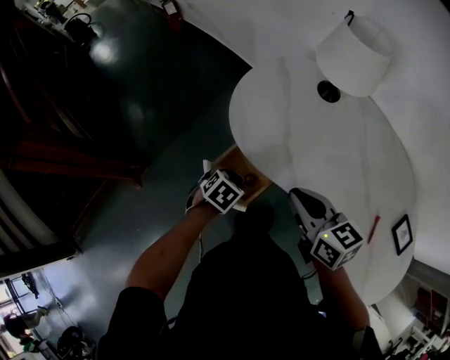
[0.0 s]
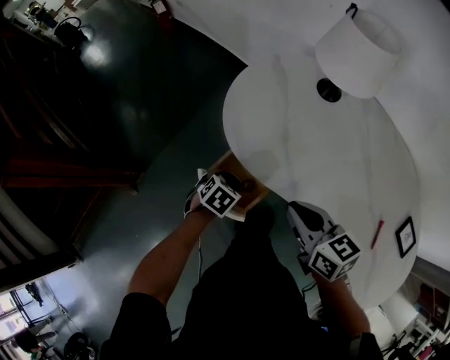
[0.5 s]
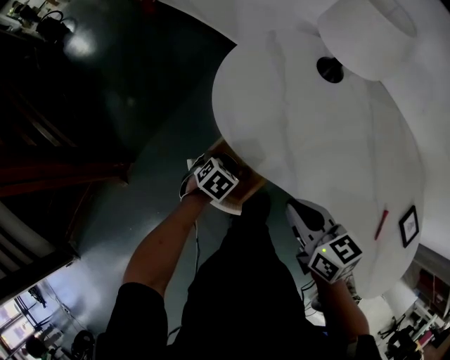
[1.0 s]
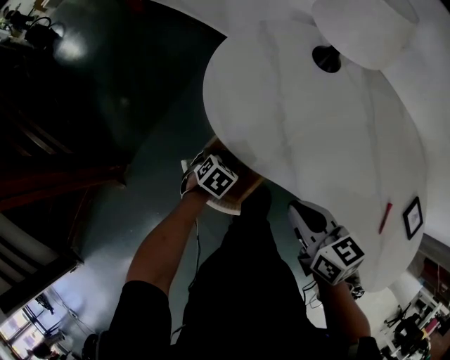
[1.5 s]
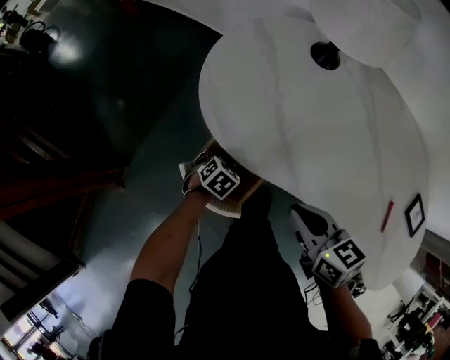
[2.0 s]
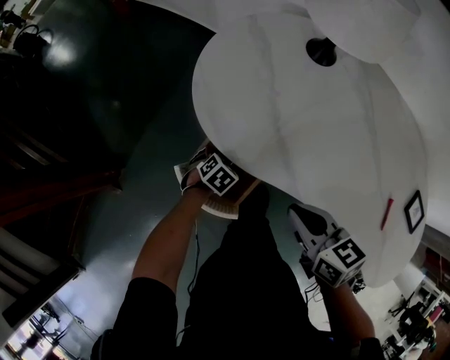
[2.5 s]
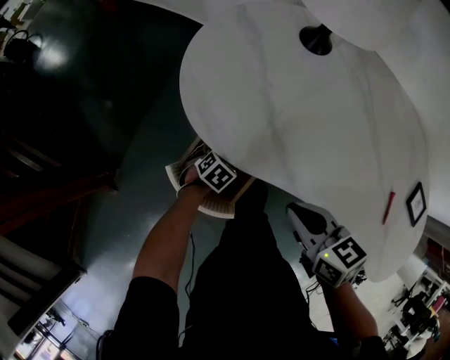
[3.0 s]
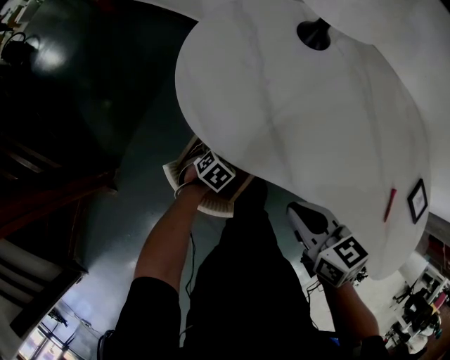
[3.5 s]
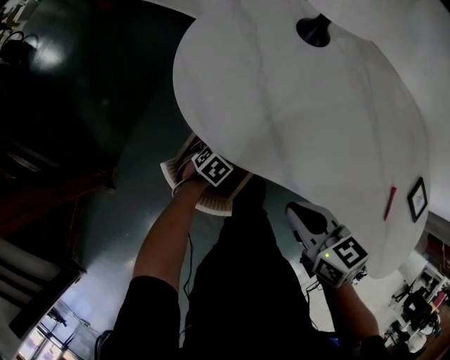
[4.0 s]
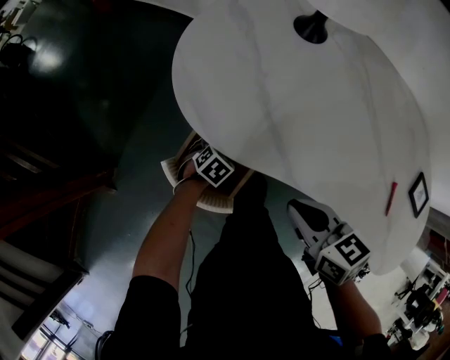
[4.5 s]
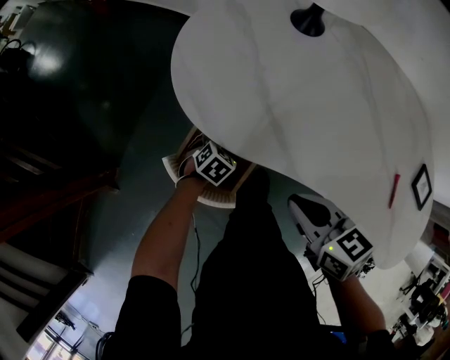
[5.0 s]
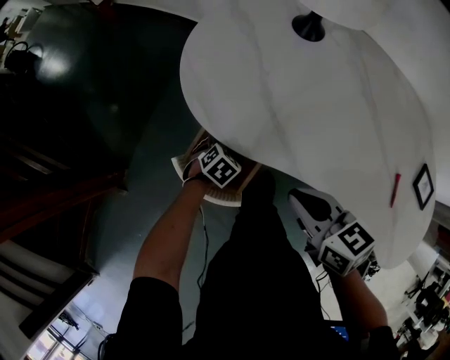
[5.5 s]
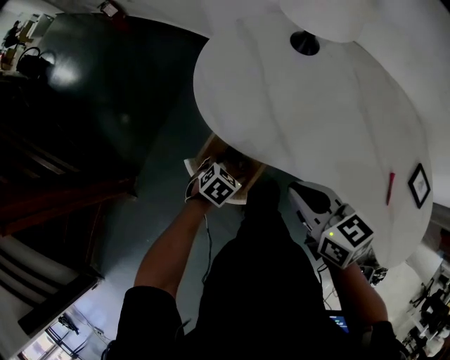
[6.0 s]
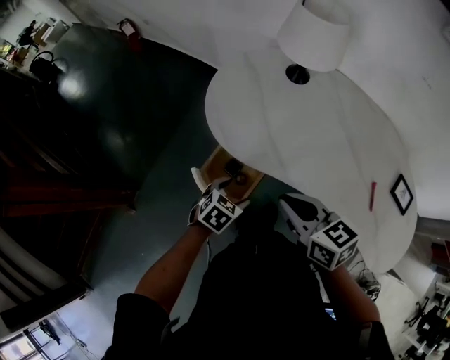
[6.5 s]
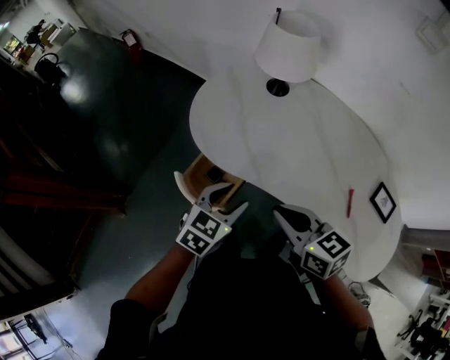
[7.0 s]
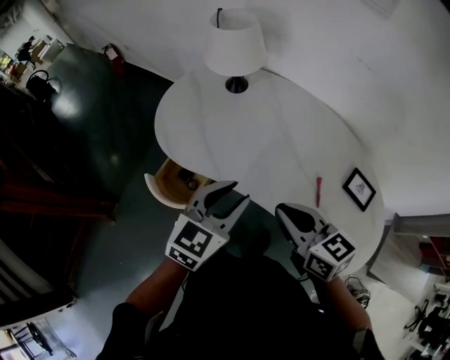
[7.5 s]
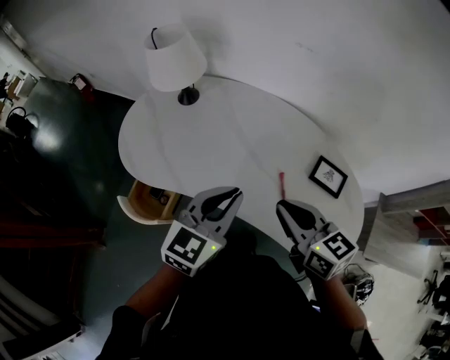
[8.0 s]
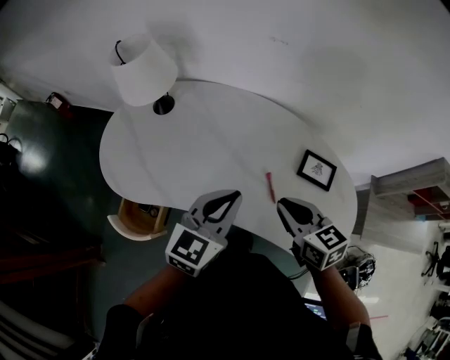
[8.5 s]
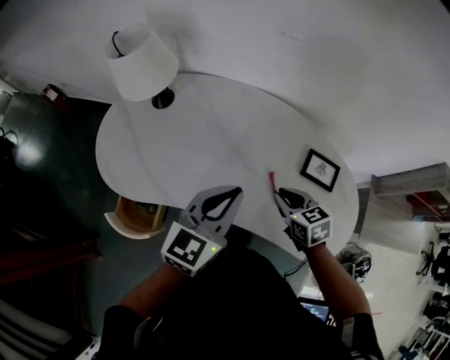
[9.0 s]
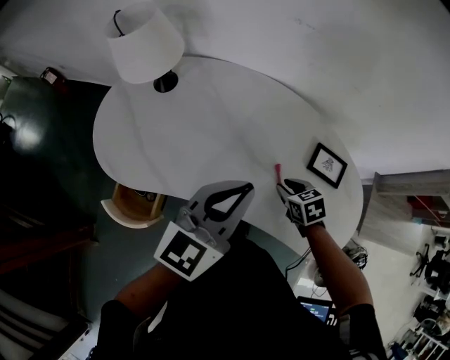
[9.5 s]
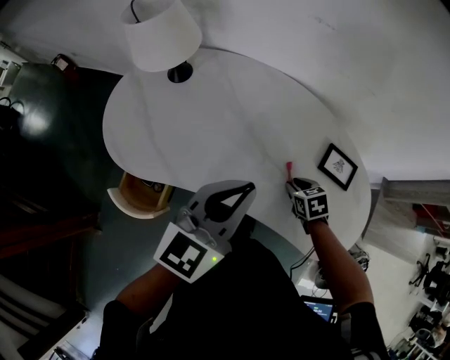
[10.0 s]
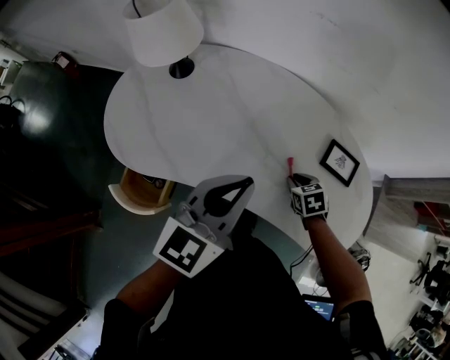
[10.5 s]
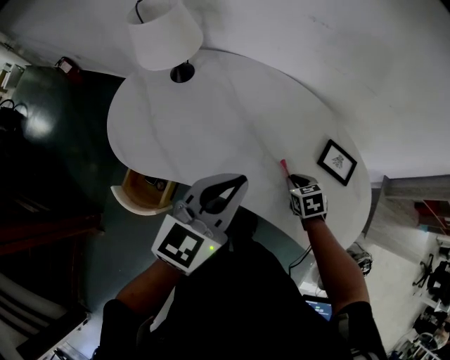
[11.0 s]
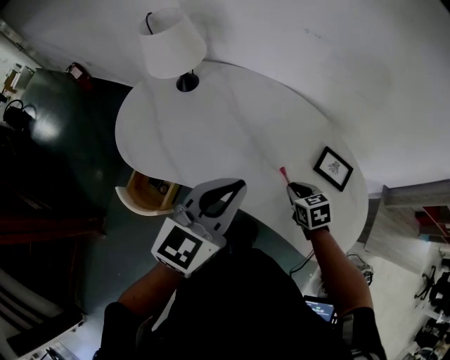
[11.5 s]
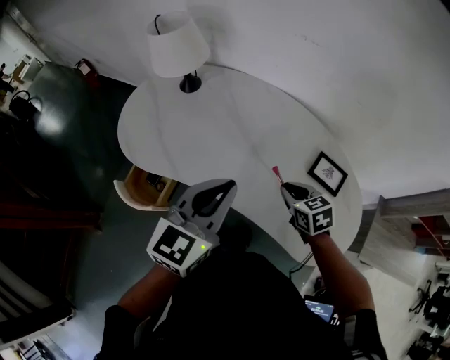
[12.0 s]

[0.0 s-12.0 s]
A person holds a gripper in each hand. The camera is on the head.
0.0 to 2.0 s: The right gripper goes about 10 cm downward, while the left gripper moves downward and forward, some 15 cm.
2.0 to 4.0 s: The left gripper travels downward by approximately 5 cm.
4.0 to 6.0 s: The left gripper shifts approximately 15 cm upward, while the right gripper moves upward, roughly 10 cm.
6.0 to 8.0 s: The left gripper heads upward and to the right, covering approximately 50 cm, angles its fingers upward, by roughly 50 degrees, and closes its fingers. The right gripper heads to the right, covering some 35 cm, and swivels some 20 degrees.
8.0 to 10.0 s: The right gripper shifts some 25 cm downward, and tips its fingers downward by some 50 degrees.
10.0 to 12.0 s: The left gripper moves approximately 5 cm, while the right gripper heads upward, covering approximately 10 cm.

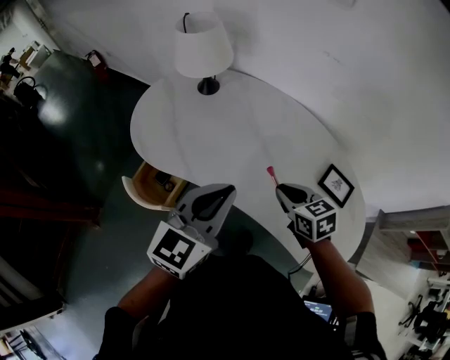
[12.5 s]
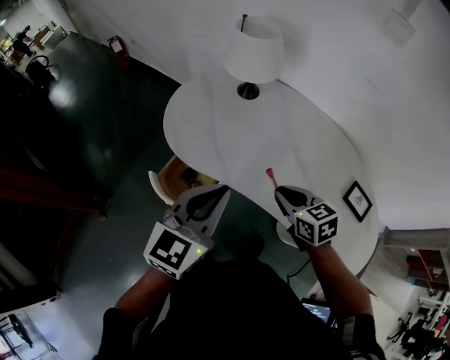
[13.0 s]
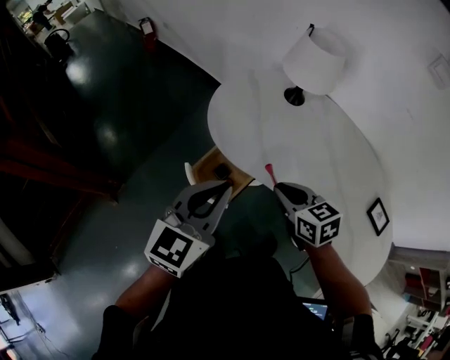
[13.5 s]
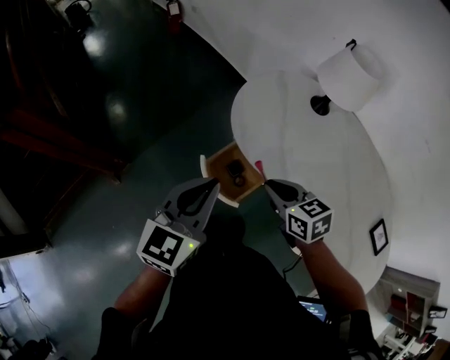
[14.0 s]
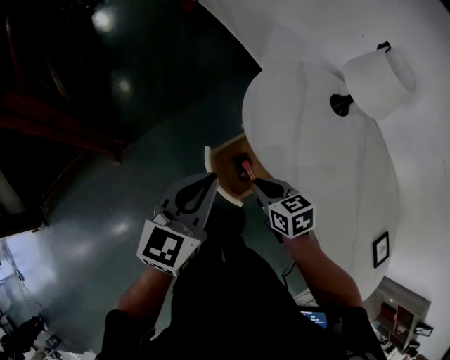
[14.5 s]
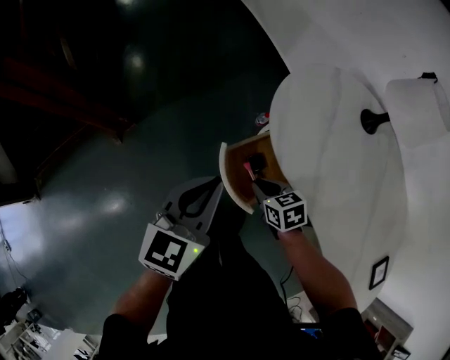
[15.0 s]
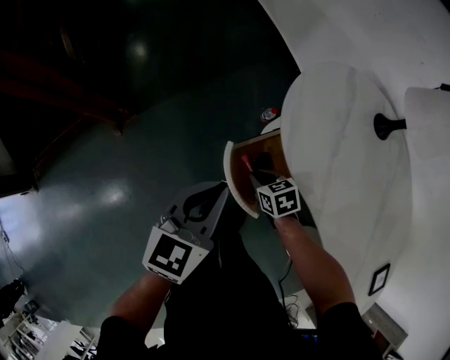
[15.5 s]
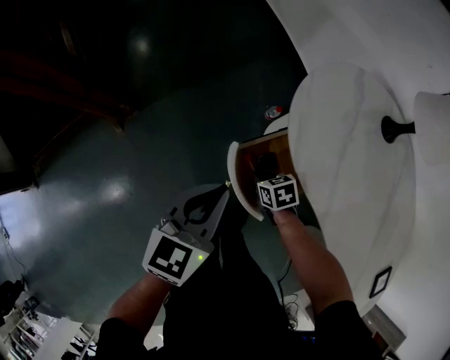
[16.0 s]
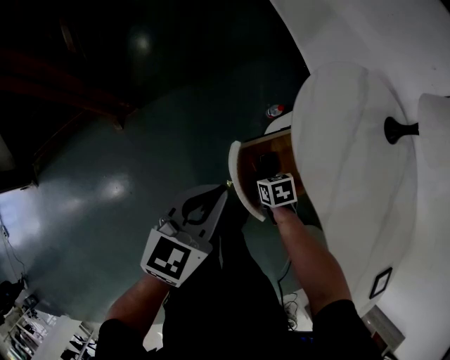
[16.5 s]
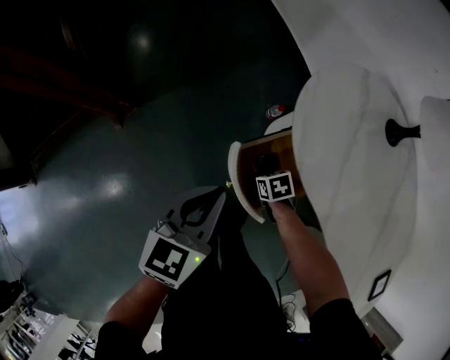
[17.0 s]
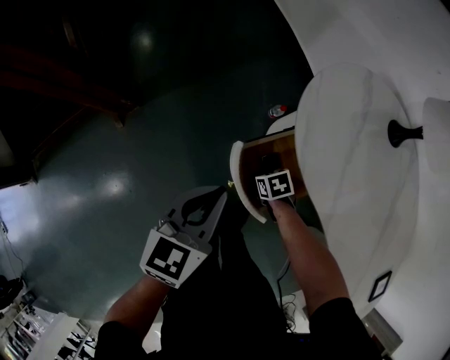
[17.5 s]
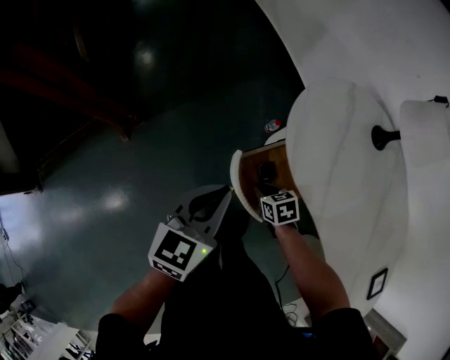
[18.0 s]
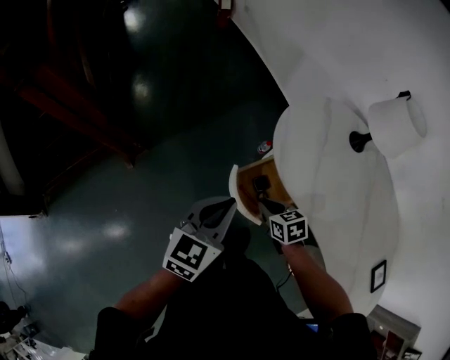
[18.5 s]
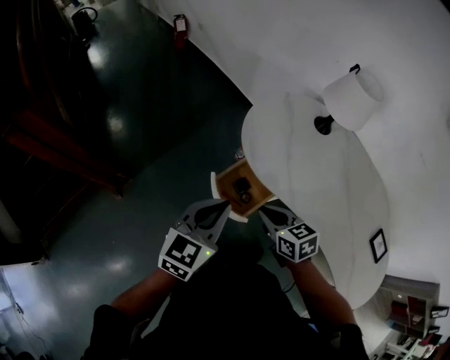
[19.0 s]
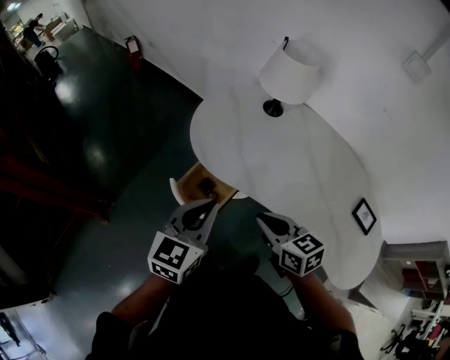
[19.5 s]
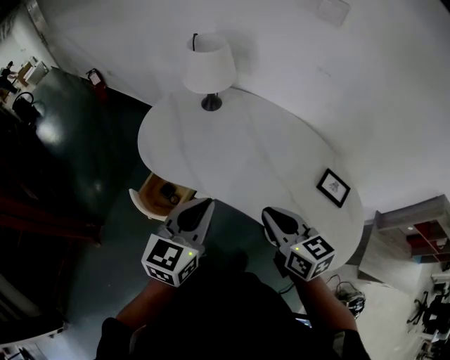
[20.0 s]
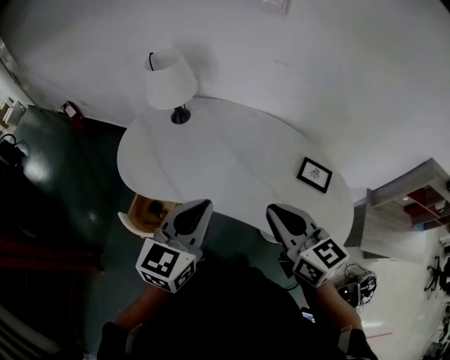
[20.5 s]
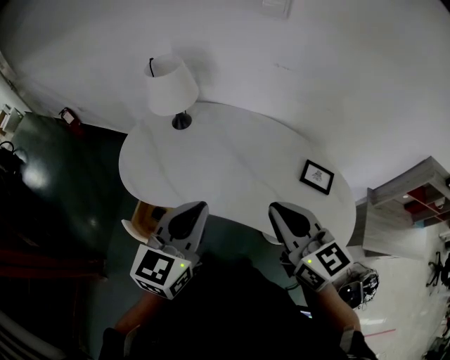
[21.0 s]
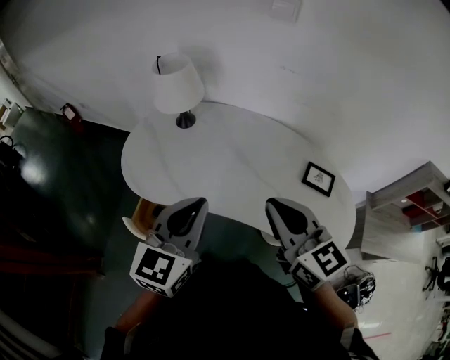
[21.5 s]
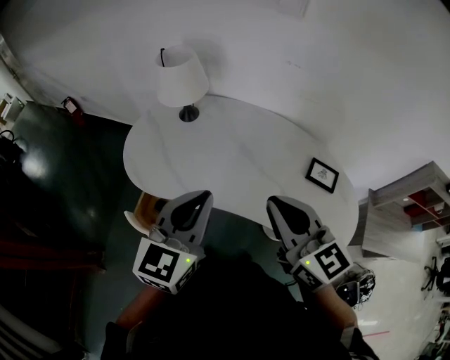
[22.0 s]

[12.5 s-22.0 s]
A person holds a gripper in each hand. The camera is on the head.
12.5 to 14.5 s: Both grippers are carried about 40 cm. The right gripper swivels approximately 30 degrees; the left gripper turns by some 40 degrees.
14.5 to 16.5 s: The left gripper goes some 15 cm downward, while the right gripper travels downward by some 25 cm, and swivels roughly 30 degrees.
16.5 to 18.0 s: The right gripper heads upward, covering about 5 cm.
18.0 to 20.0 s: The left gripper moves about 40 cm, and swivels roughly 30 degrees. Meanwhile the right gripper moves some 60 cm, and points its fingers about 40 degrees further upward.
20.0 to 22.0 s: The right gripper travels upward by approximately 15 cm, and changes its angle by about 20 degrees; the left gripper heads upward, covering roughly 10 cm.

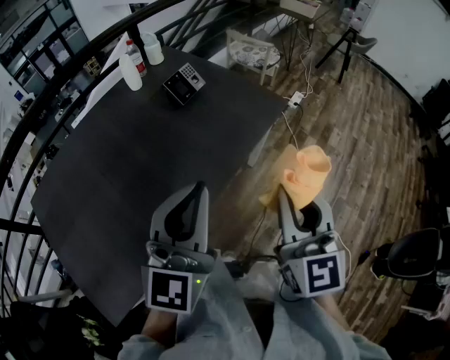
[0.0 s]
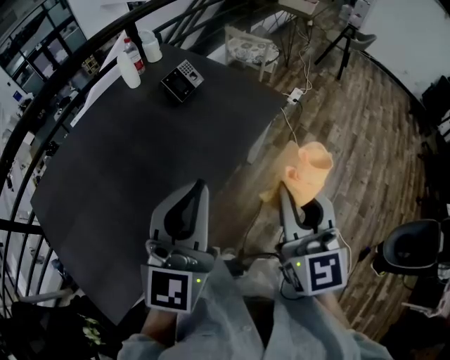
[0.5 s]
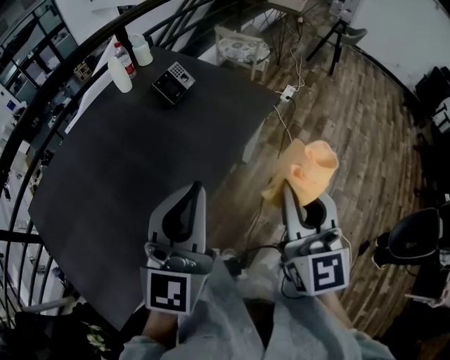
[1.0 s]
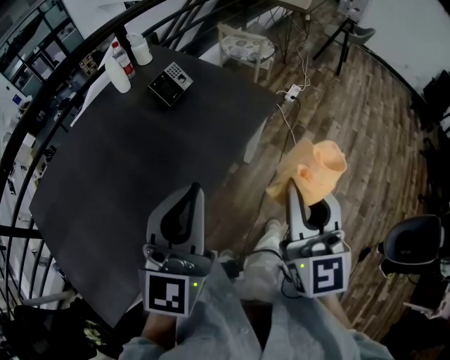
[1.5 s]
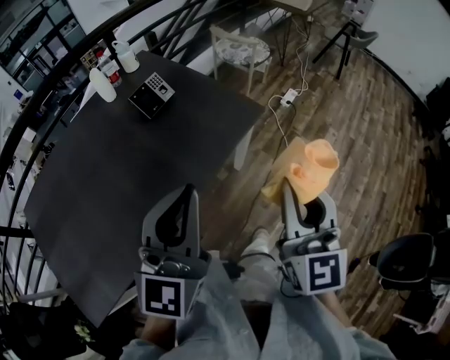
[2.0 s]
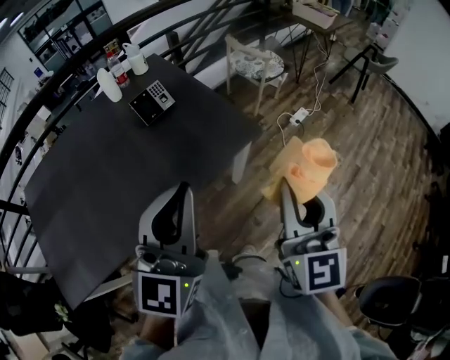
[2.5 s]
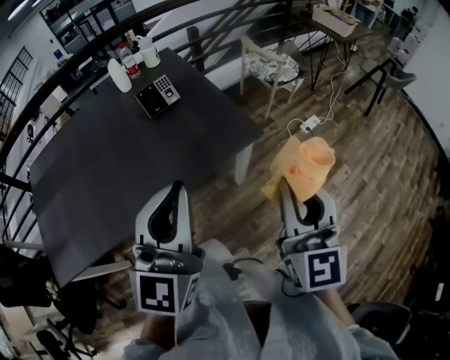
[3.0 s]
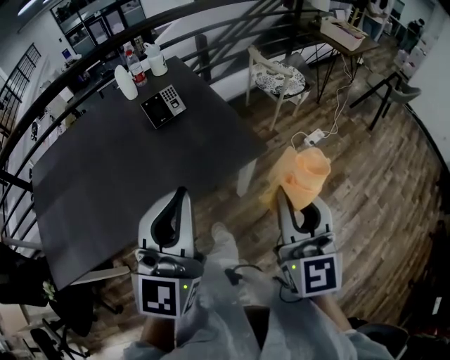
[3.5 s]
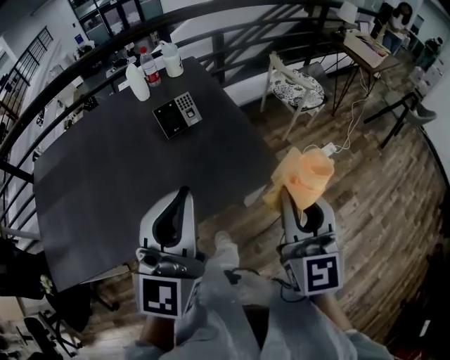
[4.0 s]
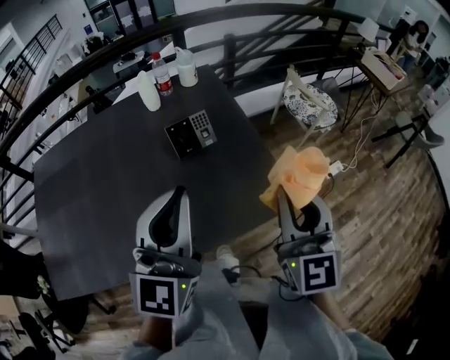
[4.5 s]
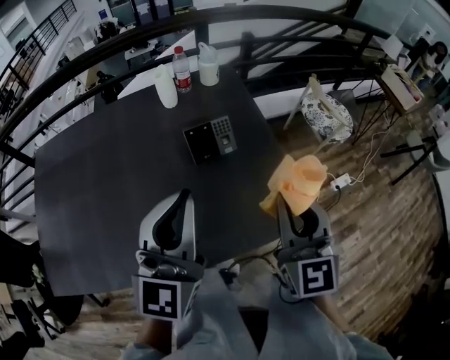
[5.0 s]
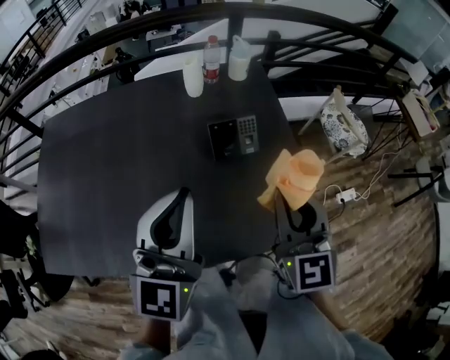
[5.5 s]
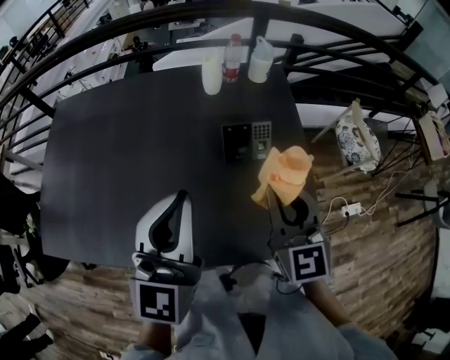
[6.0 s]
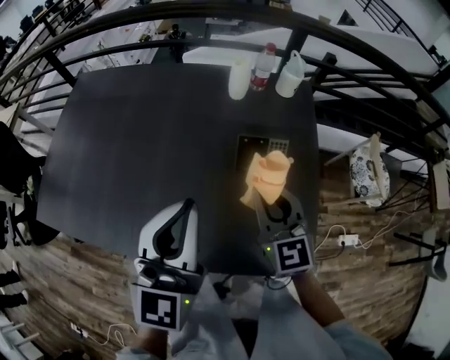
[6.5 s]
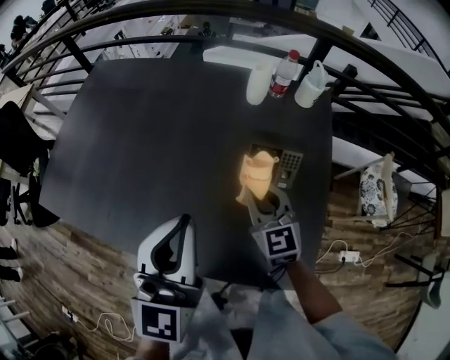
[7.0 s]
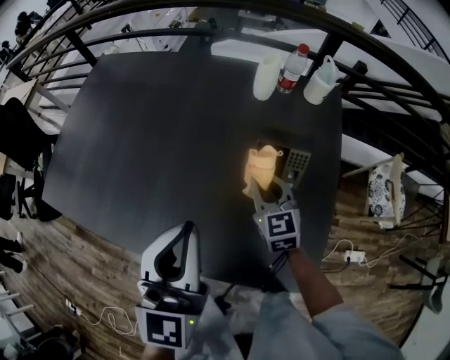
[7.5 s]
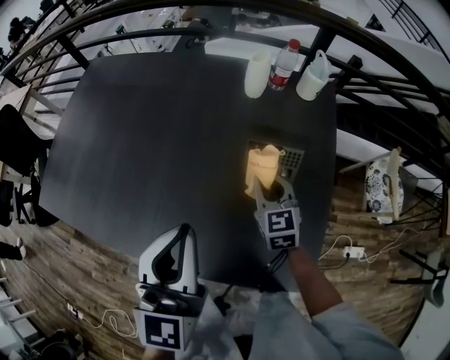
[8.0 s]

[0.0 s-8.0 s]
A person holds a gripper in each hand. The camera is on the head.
0.0 to 2.0 s: The two grippers go some 15 cm to the right and forward.
2.0 to 4.0 s: Both grippers travel together forward, some 15 cm. The right gripper changes its angle by roughly 20 degrees; the left gripper swivels roughly 20 degrees.
4.0 to 6.0 s: The left gripper changes place by about 20 cm, and rotates roughly 20 degrees. The right gripper changes place by about 30 cm, and turns by roughly 30 degrees.
6.0 to 8.0 s: The right gripper travels downward and forward by approximately 20 cm, and turns by some 20 degrees.
